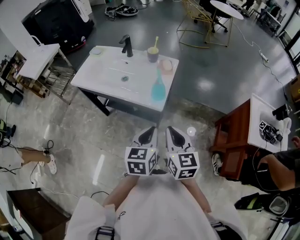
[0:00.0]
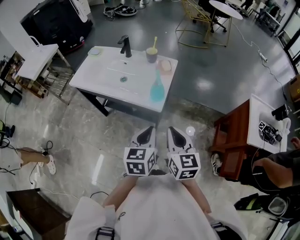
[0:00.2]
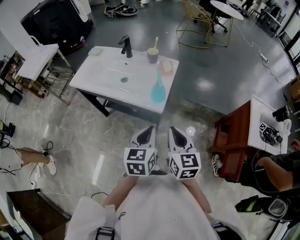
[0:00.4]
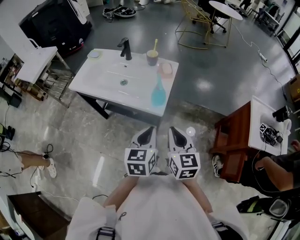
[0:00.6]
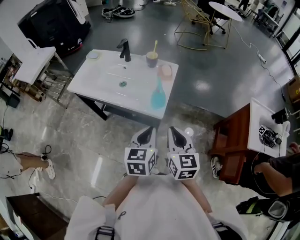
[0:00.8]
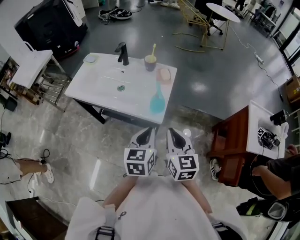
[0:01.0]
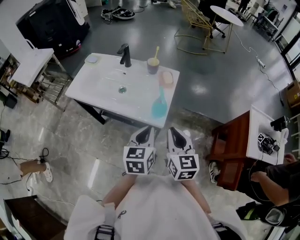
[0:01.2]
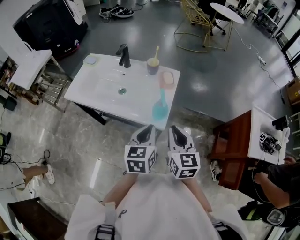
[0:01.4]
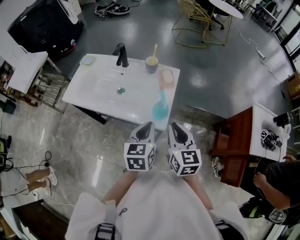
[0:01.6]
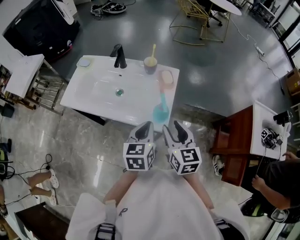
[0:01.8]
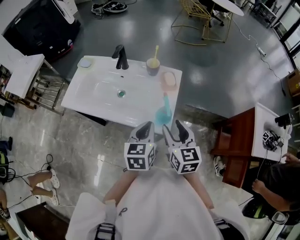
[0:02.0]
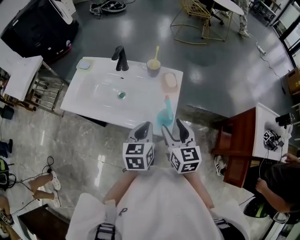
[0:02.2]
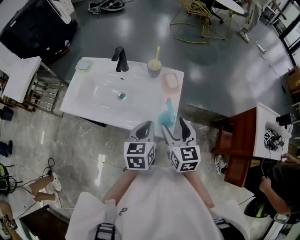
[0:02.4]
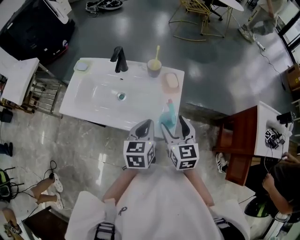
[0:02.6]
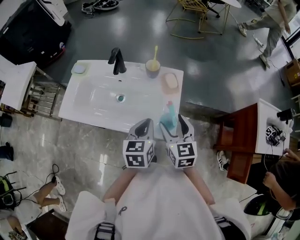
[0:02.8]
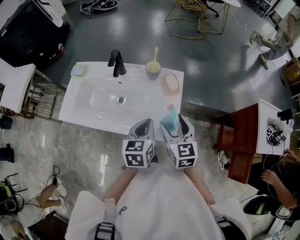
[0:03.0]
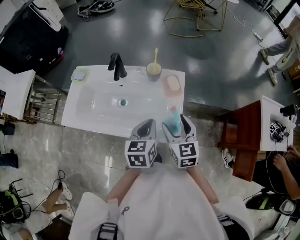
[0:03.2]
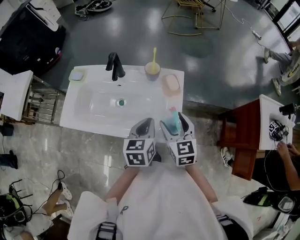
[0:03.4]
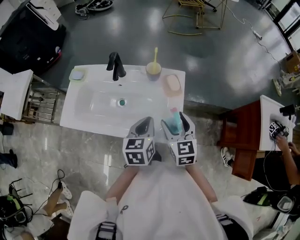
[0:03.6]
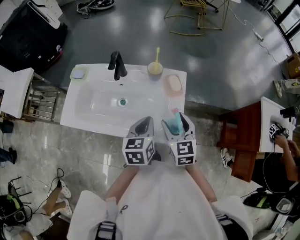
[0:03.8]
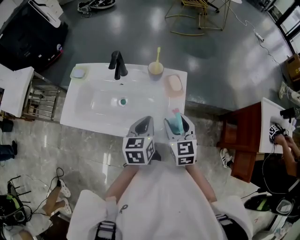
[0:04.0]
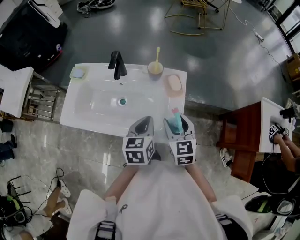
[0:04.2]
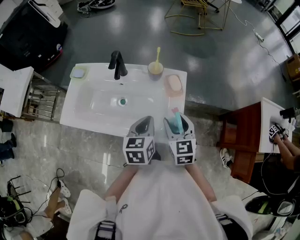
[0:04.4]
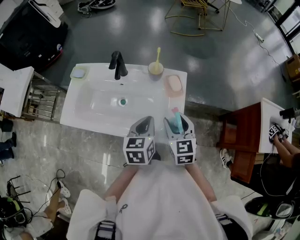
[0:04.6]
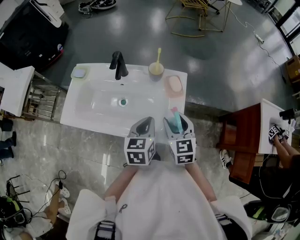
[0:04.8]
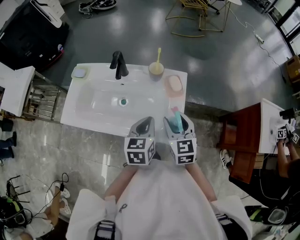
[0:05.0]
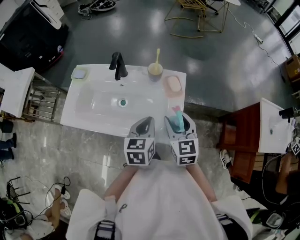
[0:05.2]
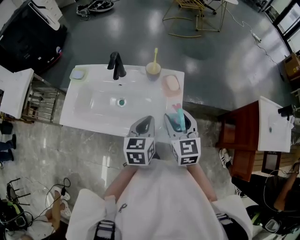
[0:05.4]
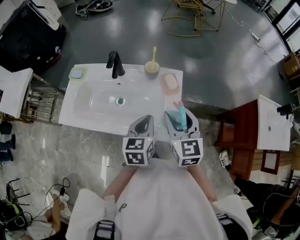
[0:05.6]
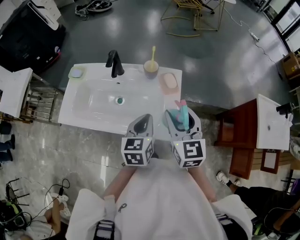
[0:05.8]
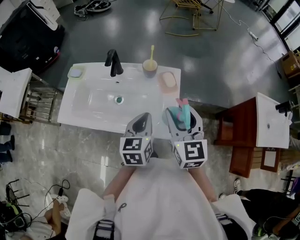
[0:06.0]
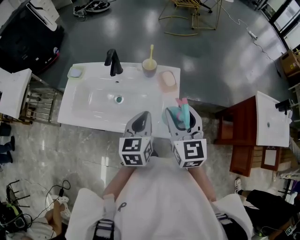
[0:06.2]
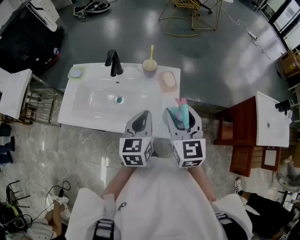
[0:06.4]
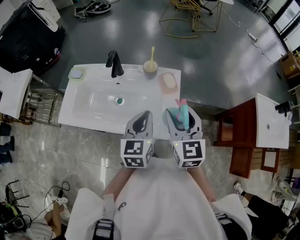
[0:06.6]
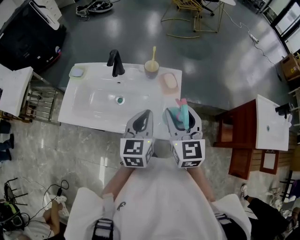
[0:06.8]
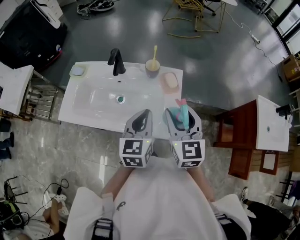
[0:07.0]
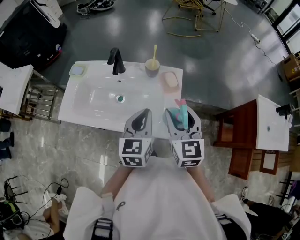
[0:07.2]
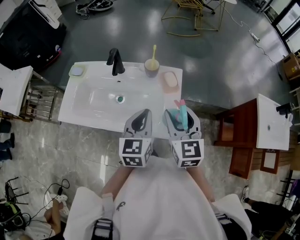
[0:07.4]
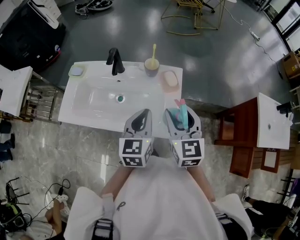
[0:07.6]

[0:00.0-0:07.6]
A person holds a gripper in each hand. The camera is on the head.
0:00.0 to 0:01.6: Both grippers travel together forward, roughly 15 cm.
0:01.6 to 0:03.0: Both grippers travel together forward, roughly 10 cm. The right gripper opens up.
0:03.0 to 0:04.6: The grippers stay close to where they were, moving slightly.
0:04.6 to 0:06.0: The right gripper is displaced upward by approximately 10 cm.
0:06.0 to 0:07.6: There are only small adjustments of the grippers.

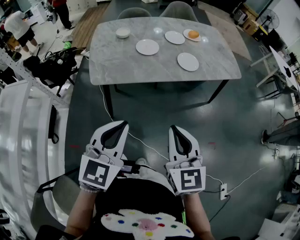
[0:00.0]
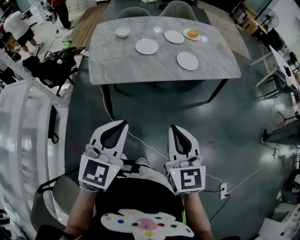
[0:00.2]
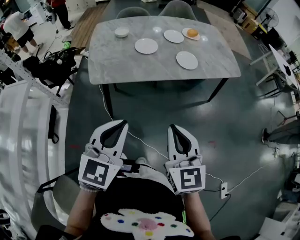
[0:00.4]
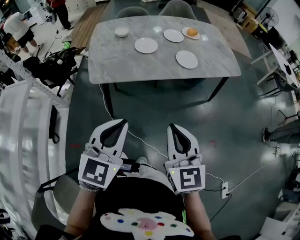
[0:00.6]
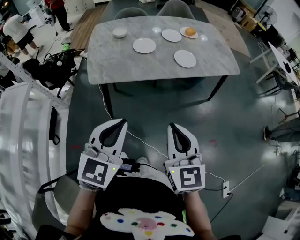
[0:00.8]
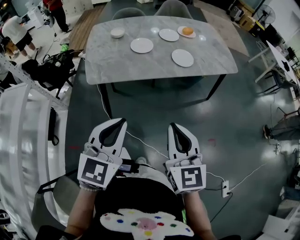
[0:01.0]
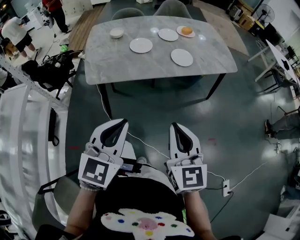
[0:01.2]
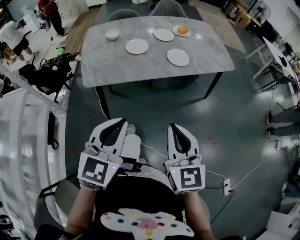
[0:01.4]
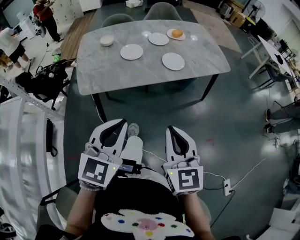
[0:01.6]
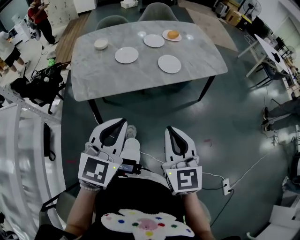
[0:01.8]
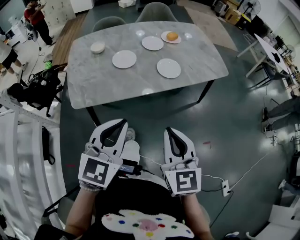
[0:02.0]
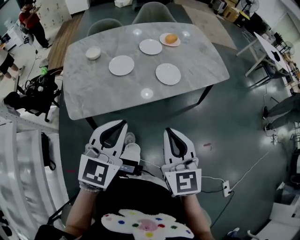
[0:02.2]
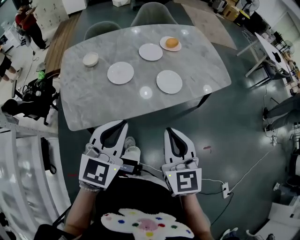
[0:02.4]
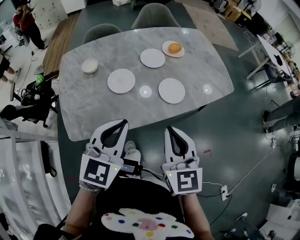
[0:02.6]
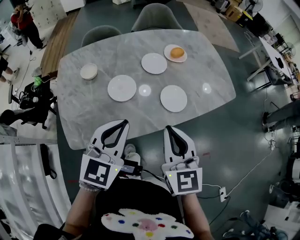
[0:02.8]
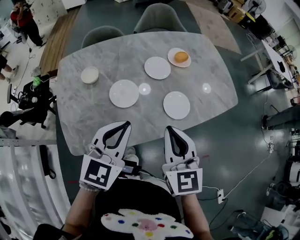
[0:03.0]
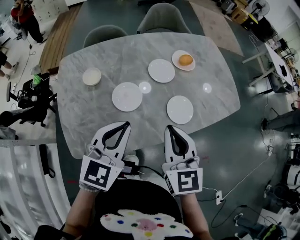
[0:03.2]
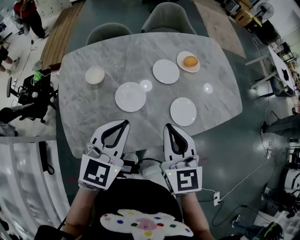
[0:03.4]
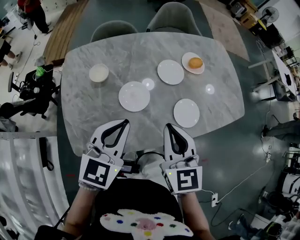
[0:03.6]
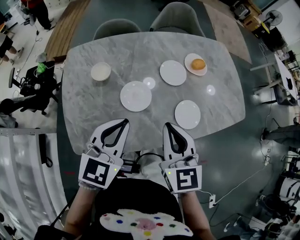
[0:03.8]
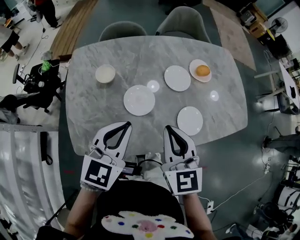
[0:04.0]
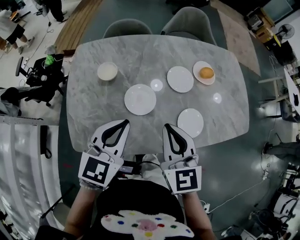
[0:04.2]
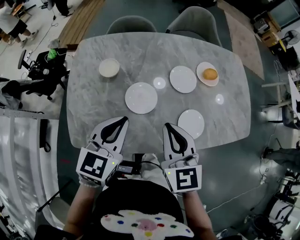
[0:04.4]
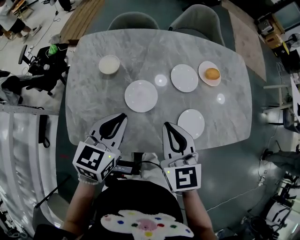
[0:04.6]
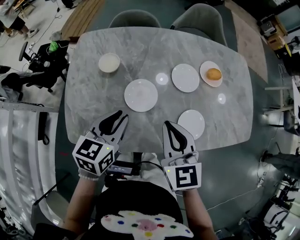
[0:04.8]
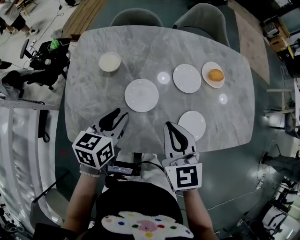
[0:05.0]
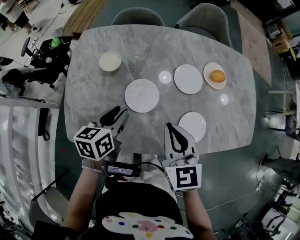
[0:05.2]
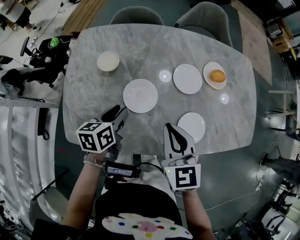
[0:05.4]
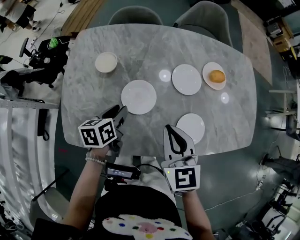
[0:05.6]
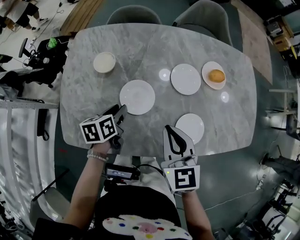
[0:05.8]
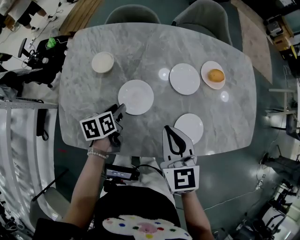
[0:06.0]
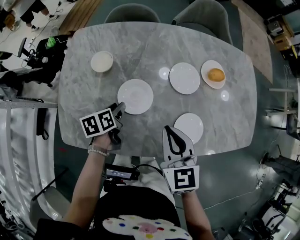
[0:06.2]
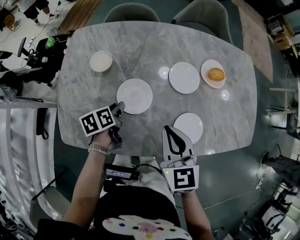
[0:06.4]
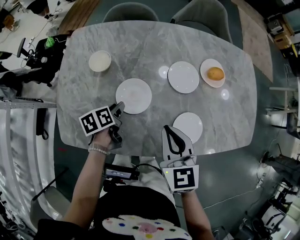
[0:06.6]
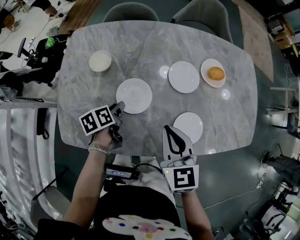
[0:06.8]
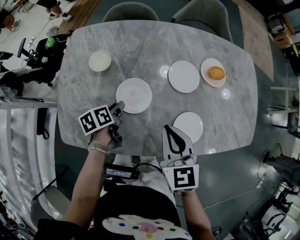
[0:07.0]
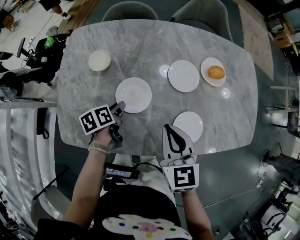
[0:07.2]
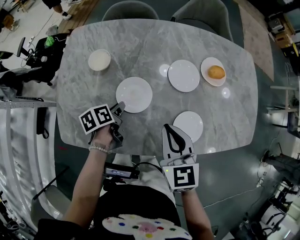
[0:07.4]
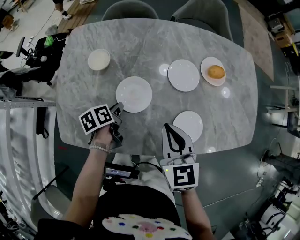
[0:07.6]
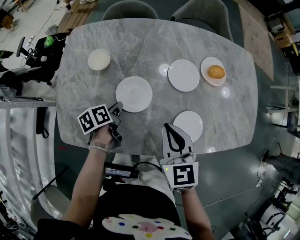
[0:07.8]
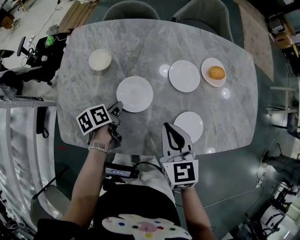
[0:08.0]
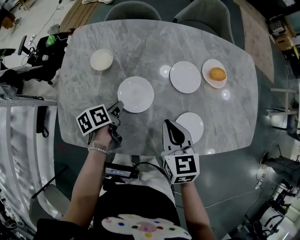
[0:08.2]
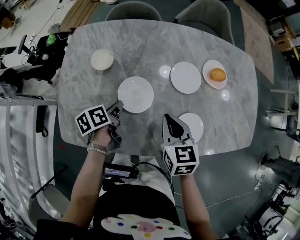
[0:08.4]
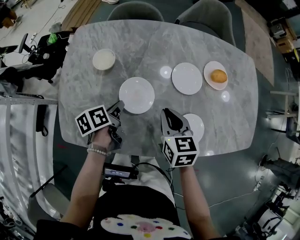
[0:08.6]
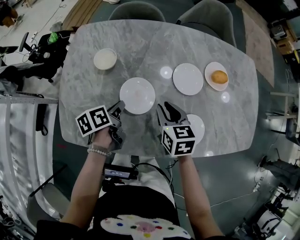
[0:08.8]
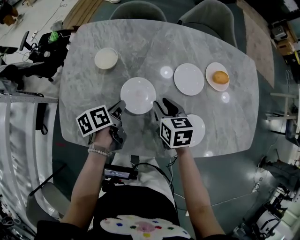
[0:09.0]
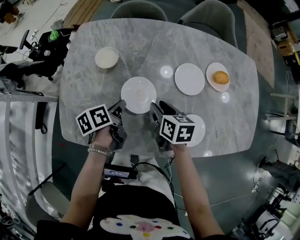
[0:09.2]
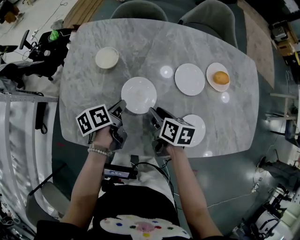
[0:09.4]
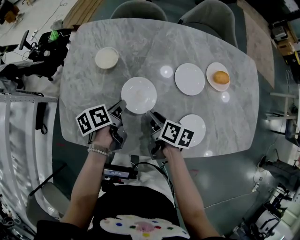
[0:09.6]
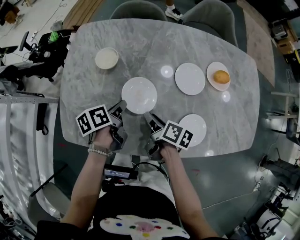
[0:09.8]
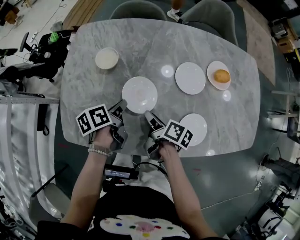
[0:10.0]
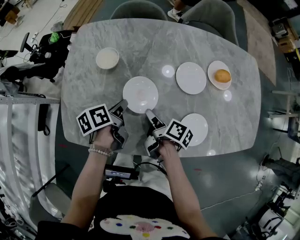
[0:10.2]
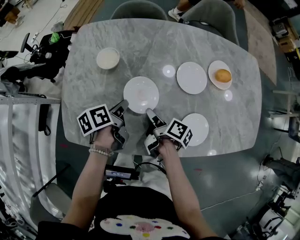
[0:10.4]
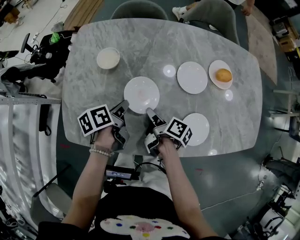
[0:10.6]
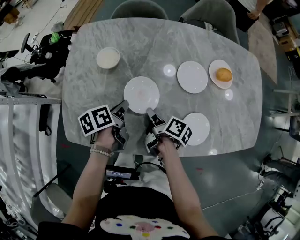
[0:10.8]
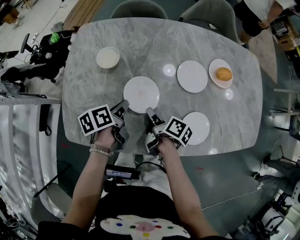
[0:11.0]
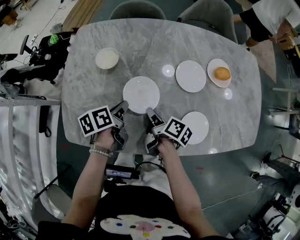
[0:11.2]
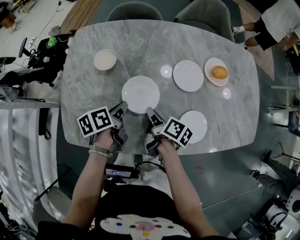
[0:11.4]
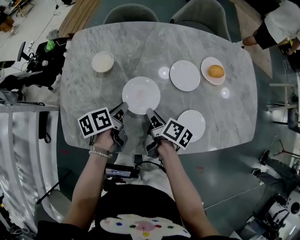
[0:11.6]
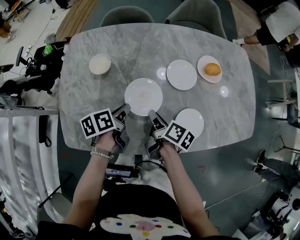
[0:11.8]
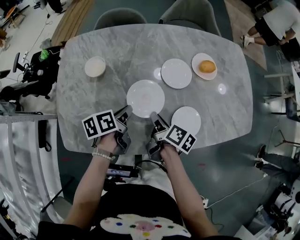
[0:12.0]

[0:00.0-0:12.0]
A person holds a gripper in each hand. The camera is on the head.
0:00.0 to 0:01.6: The left gripper ends up about 5 cm from where it was; the right gripper moves to the right, roughly 5 cm.
0:01.6 to 0:03.0: The grippers both shift forward by roughly 35 cm.
0:03.0 to 0:04.4: The left gripper heads to the left and forward, covering some 10 cm, and turns by about 20 degrees. Meanwhile the right gripper is displaced forward and to the left by approximately 10 cm.
0:04.4 to 0:06.0: The left gripper heads downward, covering some 20 cm, rolls counterclockwise, seen from behind, by approximately 50 degrees, and opens up. The right gripper travels downward by roughly 5 cm.
0:06.0 to 0:07.6: The left gripper closes its fingers.
0:07.6 to 0:09.0: The right gripper moves downward and forward, about 15 cm, changes its angle by approximately 20 degrees, and opens.
0:09.0 to 0:10.4: The right gripper is displaced downward by some 5 cm, and rotates around the line of its fingers by roughly 70 degrees, clockwise from behind.
0:10.4 to 0:12.0: The grippers both shift to the right by roughly 5 cm.

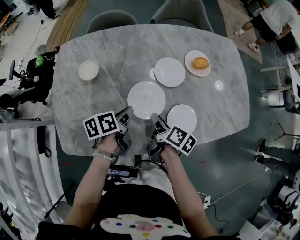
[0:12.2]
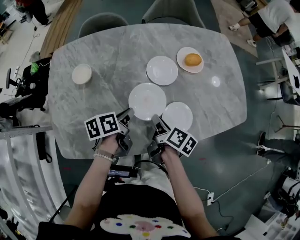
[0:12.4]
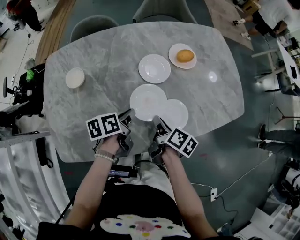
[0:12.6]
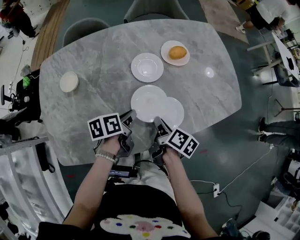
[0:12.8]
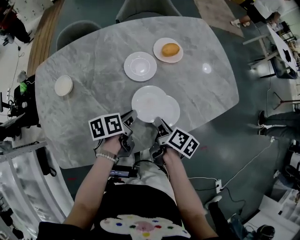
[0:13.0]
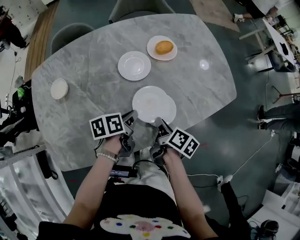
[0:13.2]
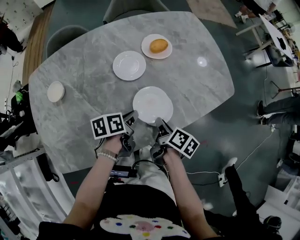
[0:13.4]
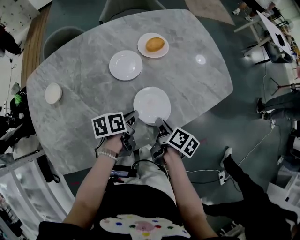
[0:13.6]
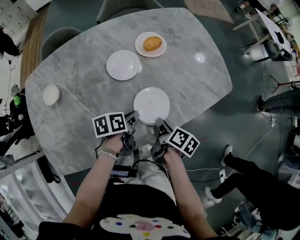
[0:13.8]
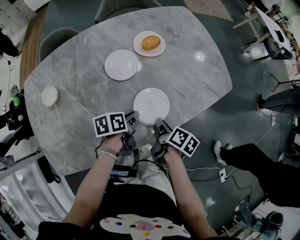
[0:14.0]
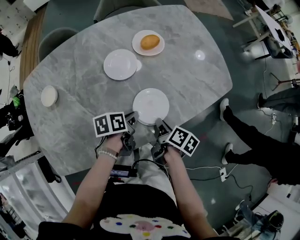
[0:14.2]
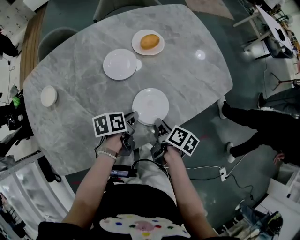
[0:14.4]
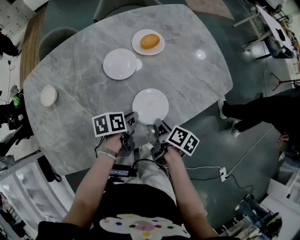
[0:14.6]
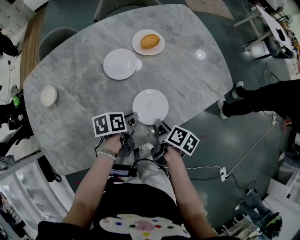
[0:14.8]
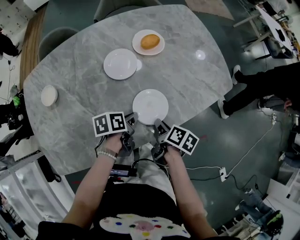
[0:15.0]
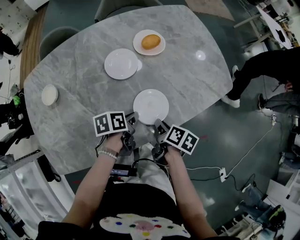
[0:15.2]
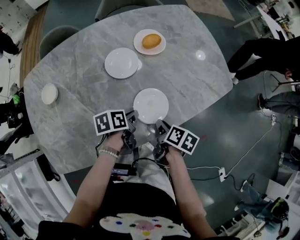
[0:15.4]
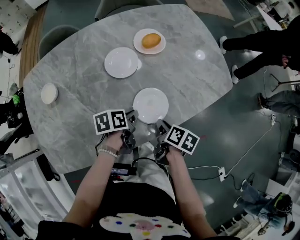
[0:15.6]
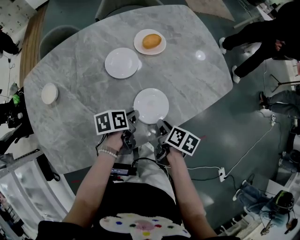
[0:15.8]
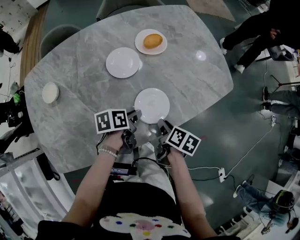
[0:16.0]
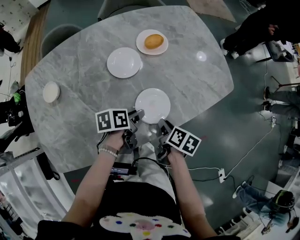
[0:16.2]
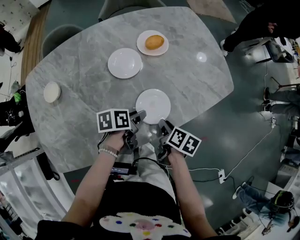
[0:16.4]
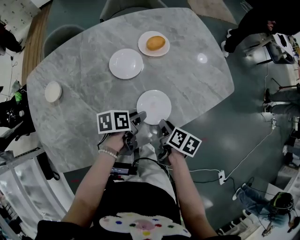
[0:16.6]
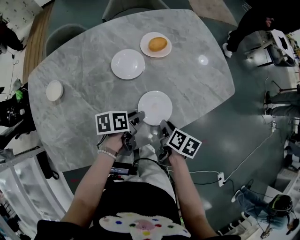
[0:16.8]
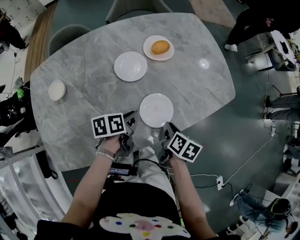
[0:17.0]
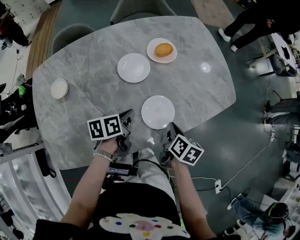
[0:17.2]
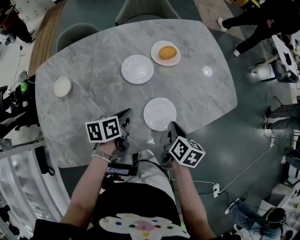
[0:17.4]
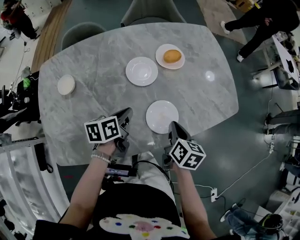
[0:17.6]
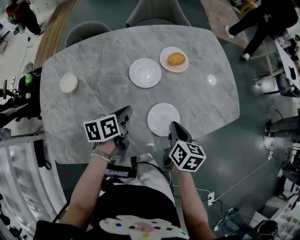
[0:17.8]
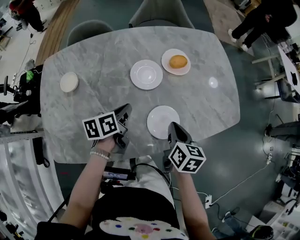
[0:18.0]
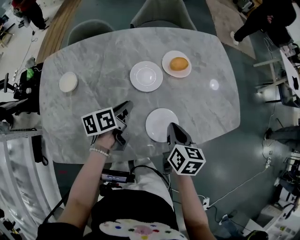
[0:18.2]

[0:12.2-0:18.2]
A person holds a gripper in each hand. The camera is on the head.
0:12.2 to 0:13.8: Both grippers move to the right, approximately 15 cm. The right gripper rotates about 20 degrees; the left gripper swivels some 30 degrees.
0:13.8 to 0:15.2: The grippers make only small movements.
0:15.2 to 0:16.6: The left gripper opens.
0:16.6 to 0:18.2: The right gripper shifts about 10 cm upward and forward, changes its angle by approximately 40 degrees, and closes. The left gripper heads to the left, forward and upward, covering about 15 cm, changes its angle by about 30 degrees, and closes.
